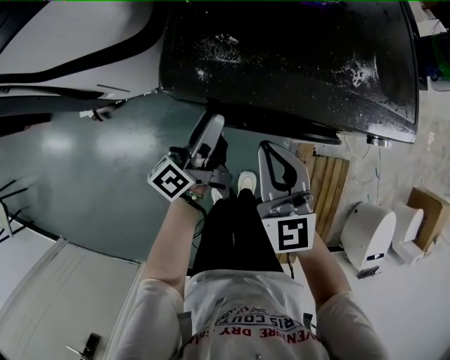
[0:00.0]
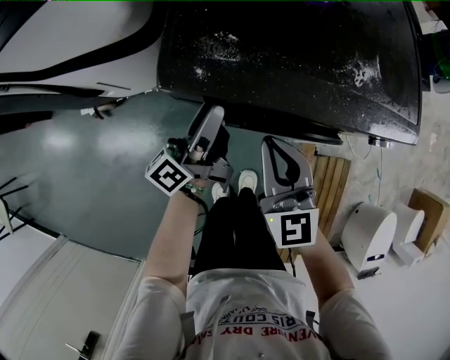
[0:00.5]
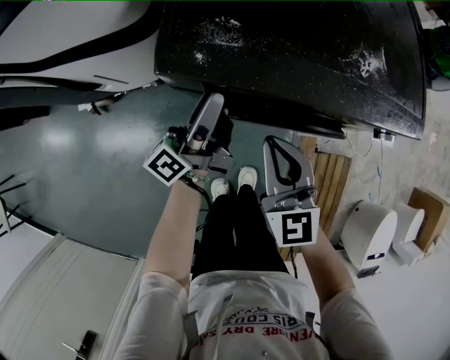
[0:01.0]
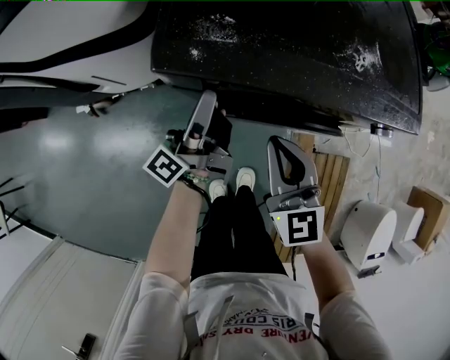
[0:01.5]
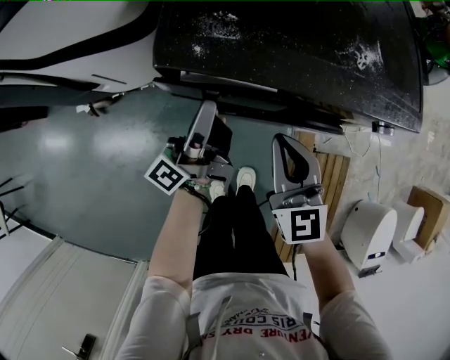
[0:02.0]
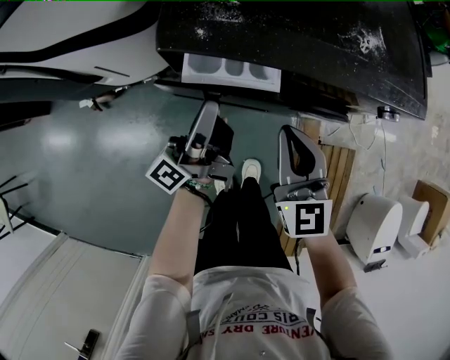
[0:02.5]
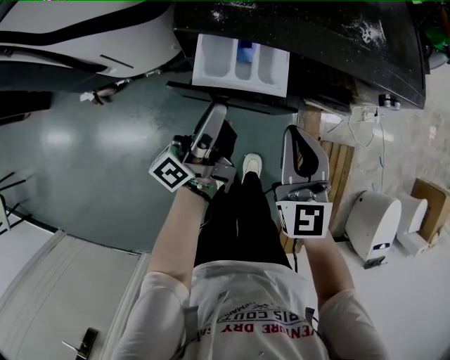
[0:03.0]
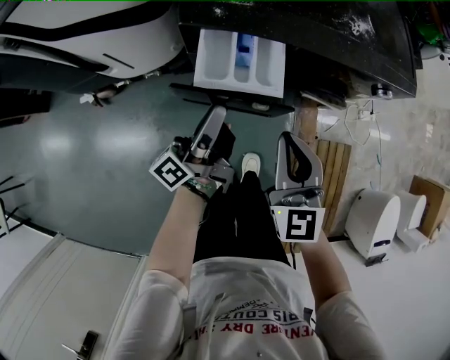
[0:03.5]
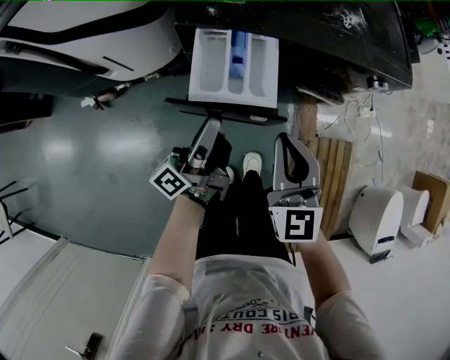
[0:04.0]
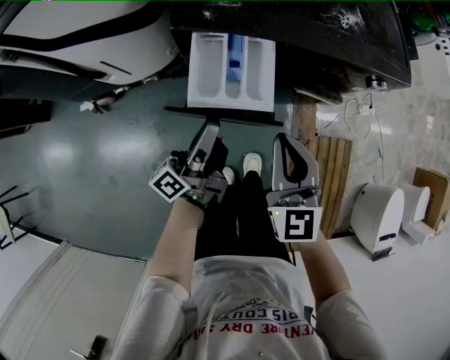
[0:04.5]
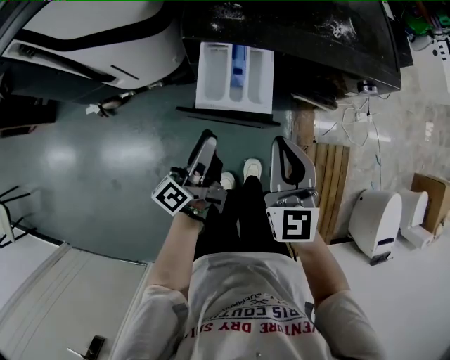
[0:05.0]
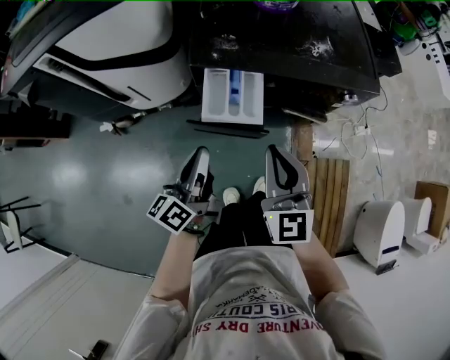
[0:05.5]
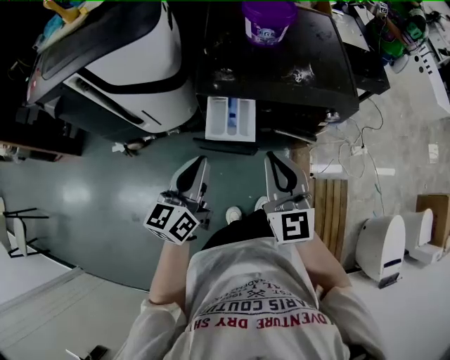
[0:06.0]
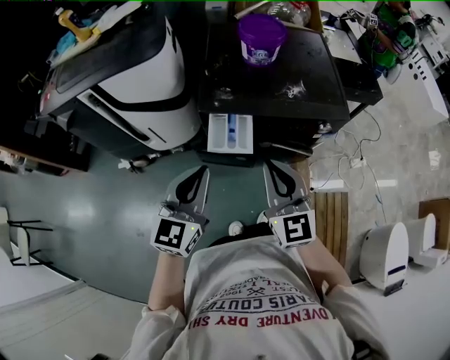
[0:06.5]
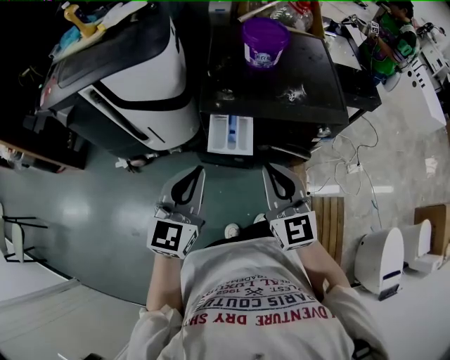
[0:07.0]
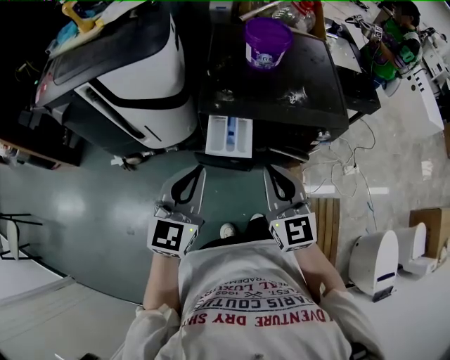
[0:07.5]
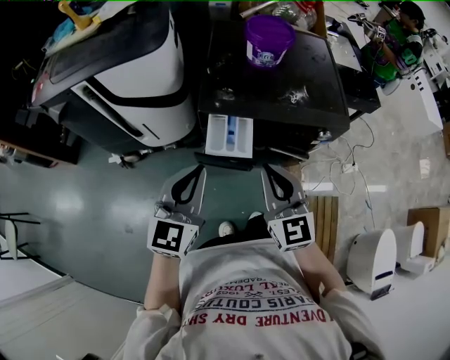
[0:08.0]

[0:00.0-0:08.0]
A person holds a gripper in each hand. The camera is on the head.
0:00.0 to 0:02.0: The left gripper closes up.
0:02.0 to 0:04.0: Both grippers move backward, some 10 cm.
0:04.0 to 0:06.0: The grippers both shift upward by about 20 cm. The left gripper rolls clockwise, seen from behind, by about 50 degrees, and opens and closes again.
0:06.0 to 0:08.0: The left gripper goes about 5 cm upward, and turns by approximately 30 degrees.

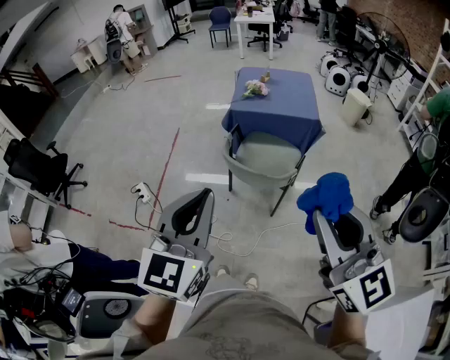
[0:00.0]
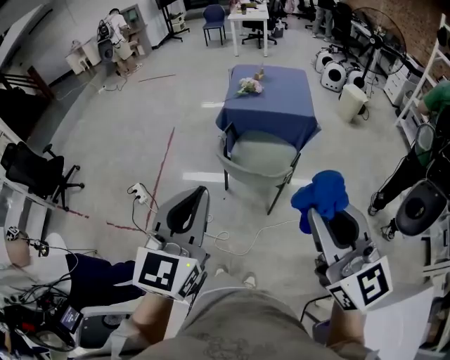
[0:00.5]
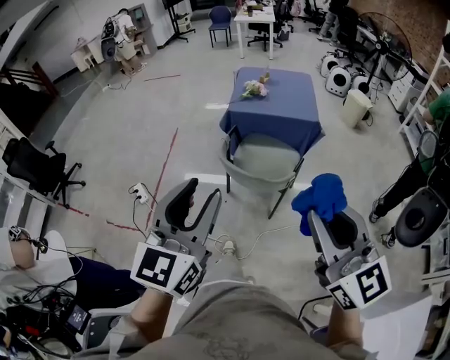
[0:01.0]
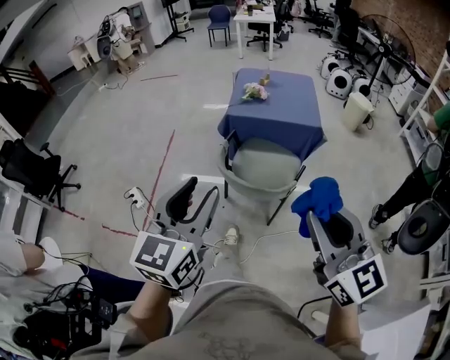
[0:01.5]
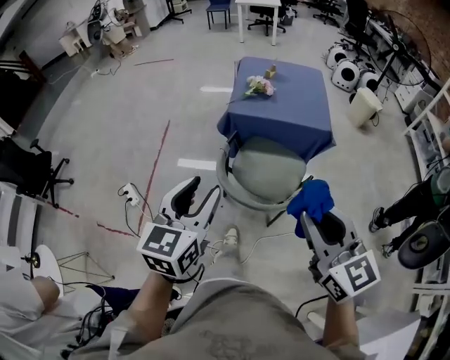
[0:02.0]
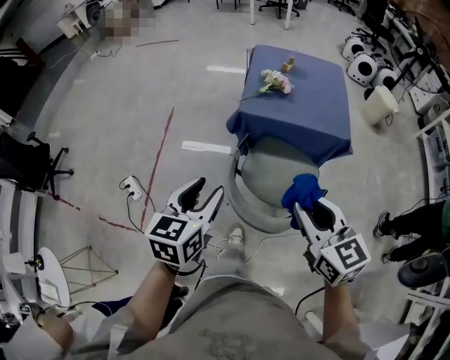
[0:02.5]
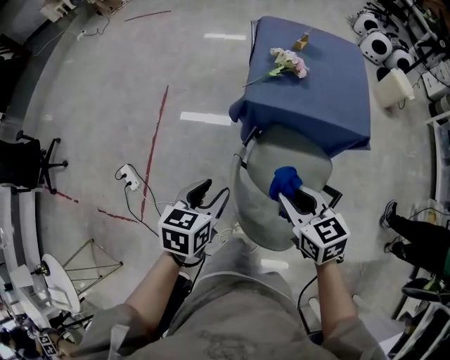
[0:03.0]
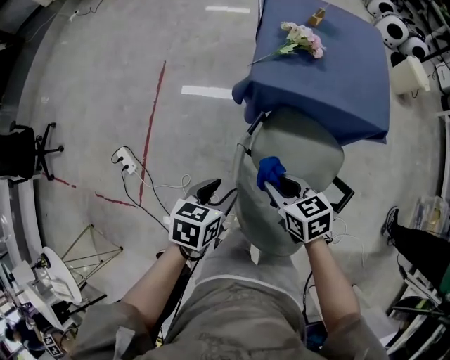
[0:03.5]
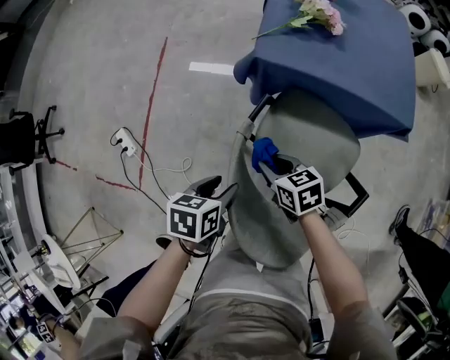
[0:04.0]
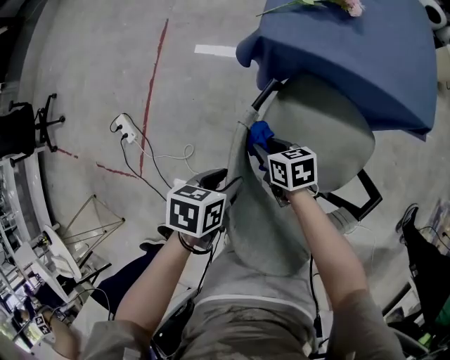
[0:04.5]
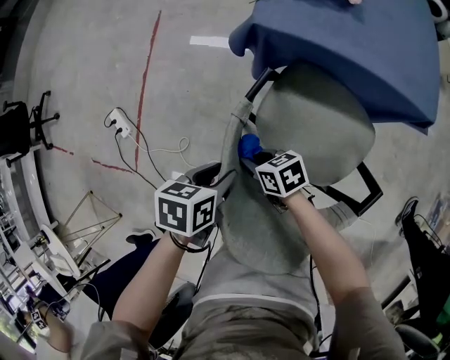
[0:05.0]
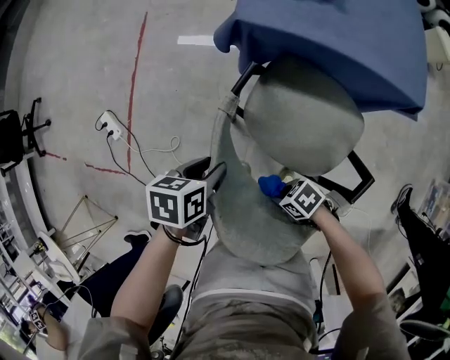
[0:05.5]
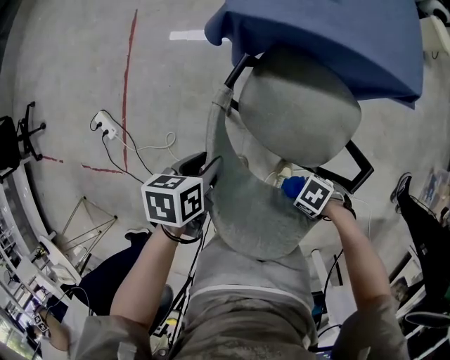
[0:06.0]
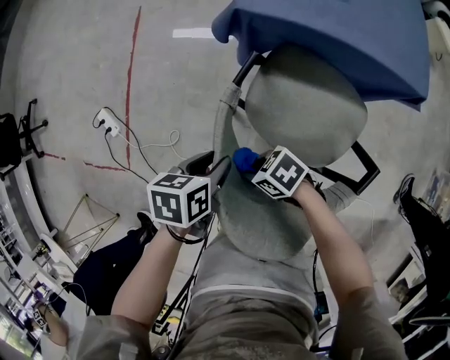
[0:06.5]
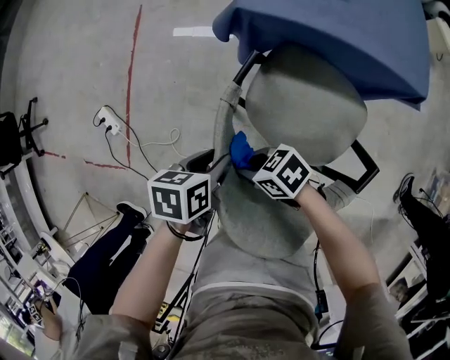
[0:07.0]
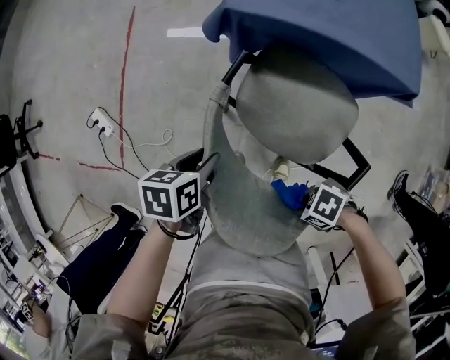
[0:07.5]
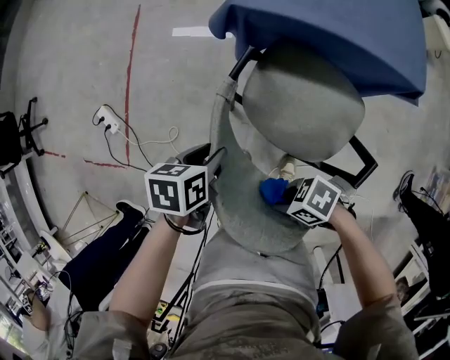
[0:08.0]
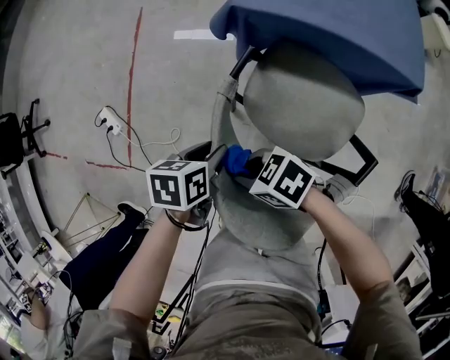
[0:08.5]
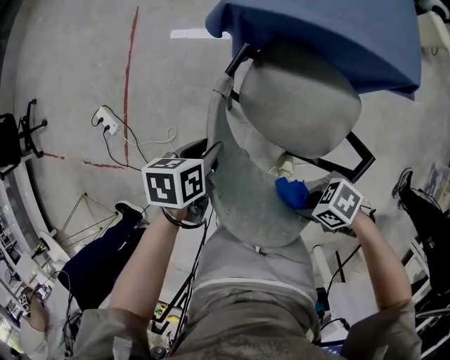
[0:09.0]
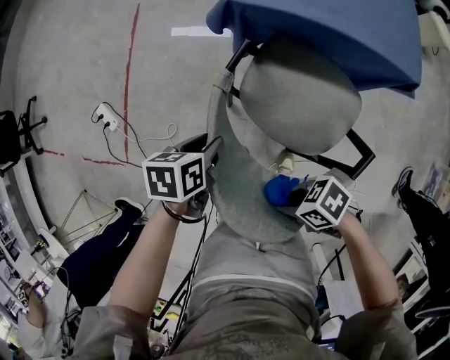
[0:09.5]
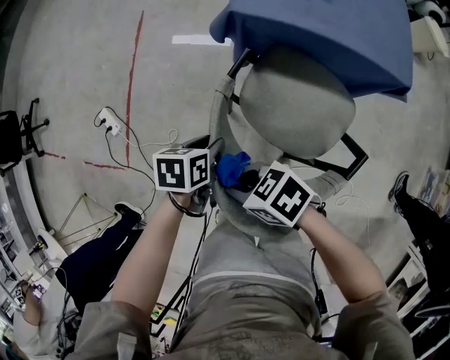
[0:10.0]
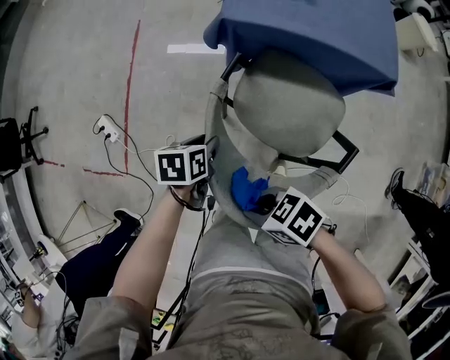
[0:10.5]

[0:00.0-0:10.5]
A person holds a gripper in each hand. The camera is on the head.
0:00.0 to 0:02.0: Both grippers move forward and downward, some 25 cm. The left gripper opens.
0:02.0 to 0:04.0: The two grippers go roughly 50 cm downward and forward. The left gripper tilts its fingers about 40 degrees downward. Meanwhile the right gripper angles its fingers downward, by about 30 degrees.
0:04.0 to 0:06.5: The right gripper rotates roughly 40 degrees.
0:06.5 to 0:08.5: The right gripper travels upward by roughly 10 cm.

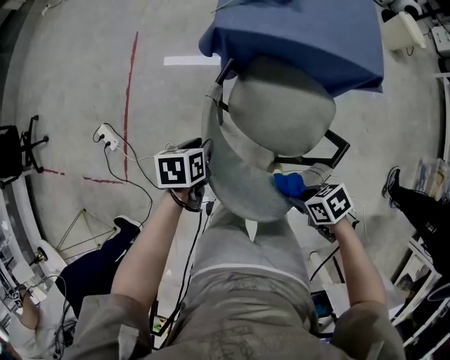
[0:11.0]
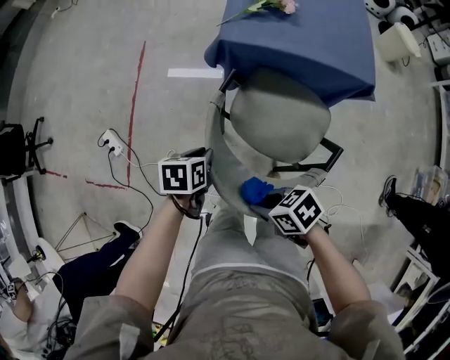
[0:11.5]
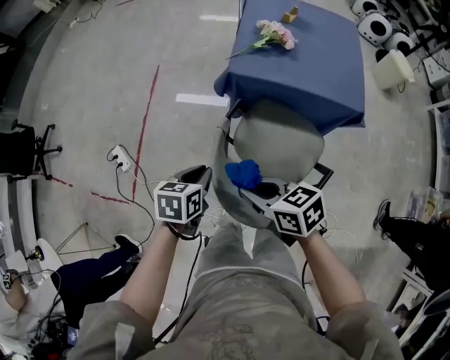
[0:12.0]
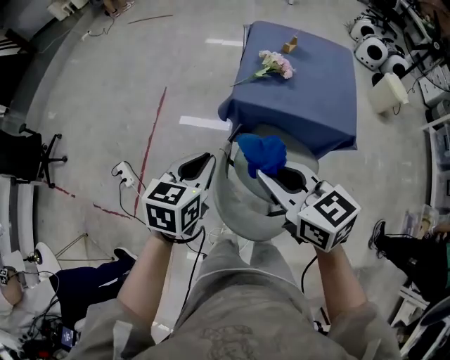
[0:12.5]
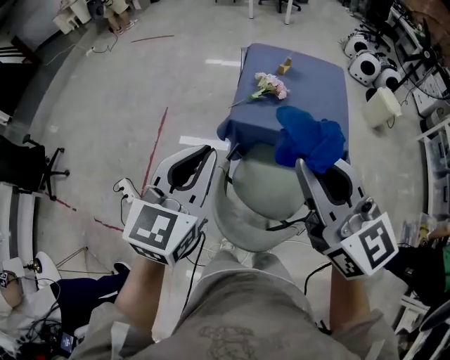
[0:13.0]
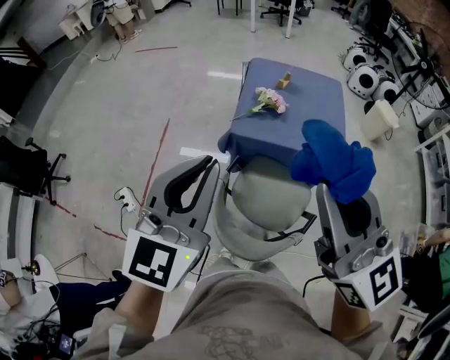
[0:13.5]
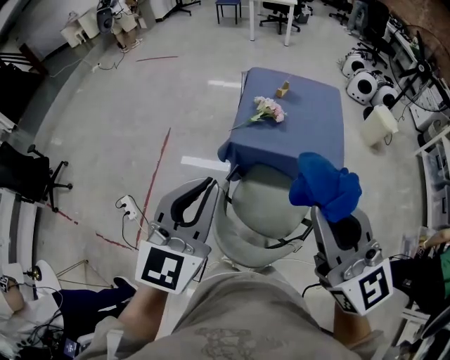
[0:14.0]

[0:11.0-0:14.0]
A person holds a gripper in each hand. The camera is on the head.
0:11.0 to 0:12.5: The two grippers go roughly 30 cm upward. The left gripper rotates approximately 30 degrees, while the right gripper points its fingers approximately 40 degrees further upward.
0:12.5 to 0:14.0: The left gripper goes approximately 20 cm upward, and rotates roughly 30 degrees. Meanwhile the right gripper heads upward and to the right, covering some 20 cm, and turns by approximately 30 degrees.

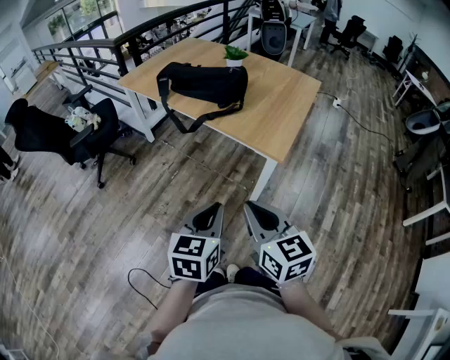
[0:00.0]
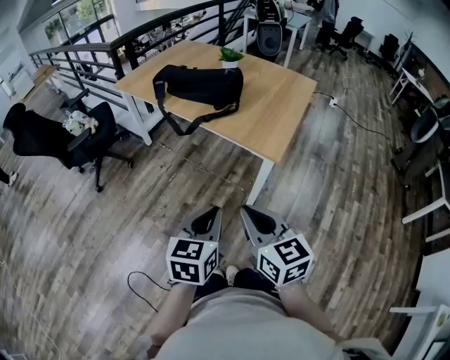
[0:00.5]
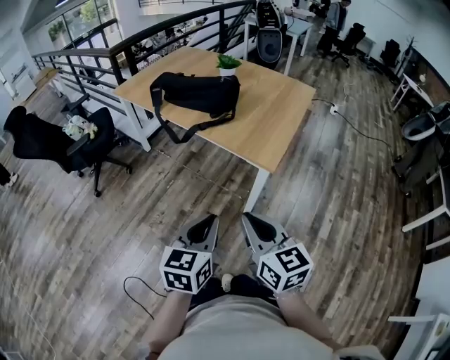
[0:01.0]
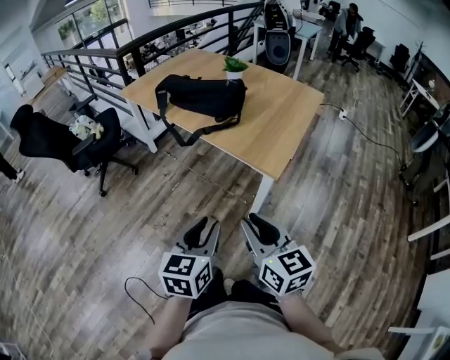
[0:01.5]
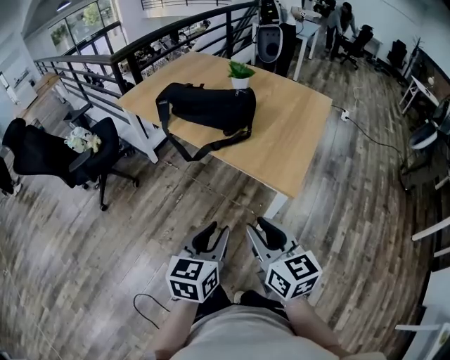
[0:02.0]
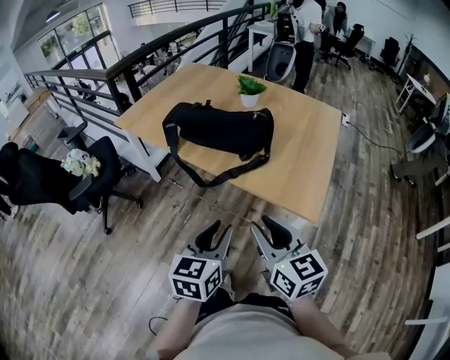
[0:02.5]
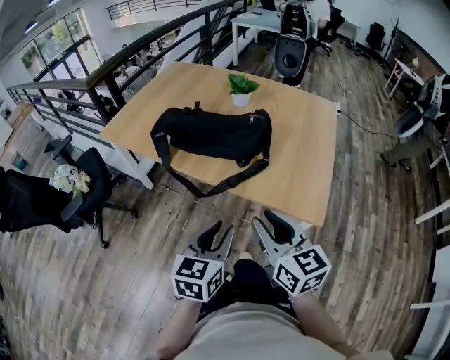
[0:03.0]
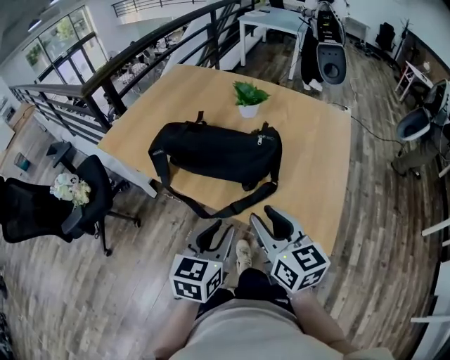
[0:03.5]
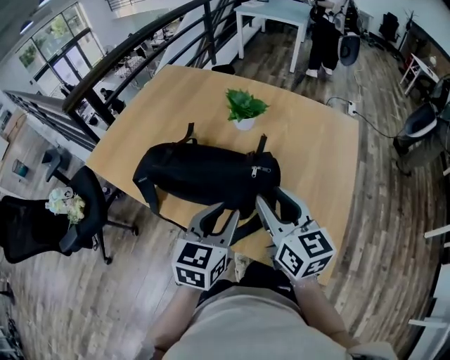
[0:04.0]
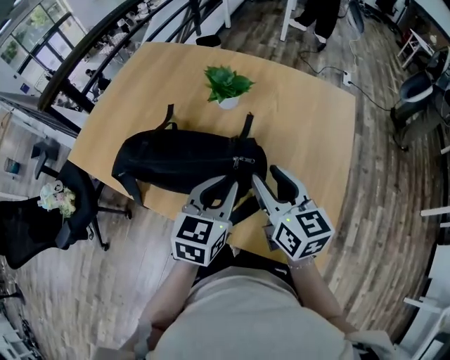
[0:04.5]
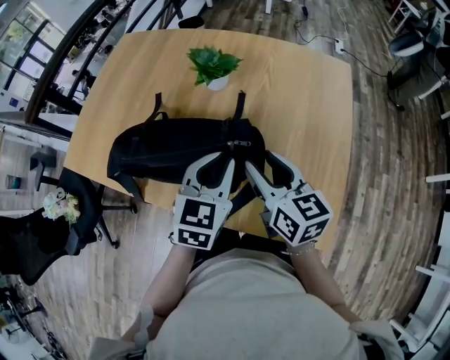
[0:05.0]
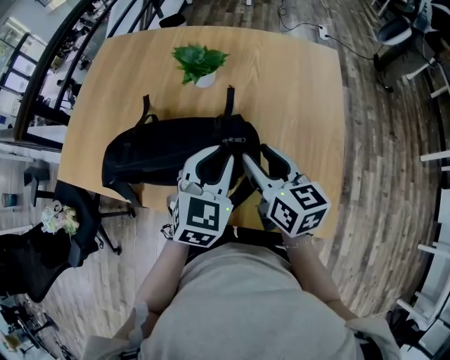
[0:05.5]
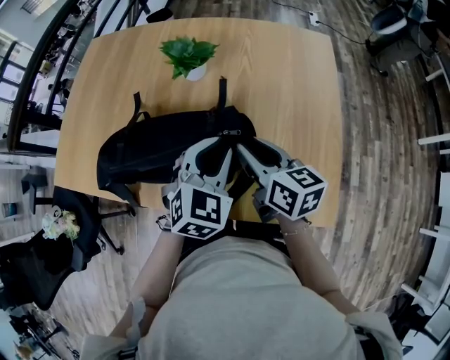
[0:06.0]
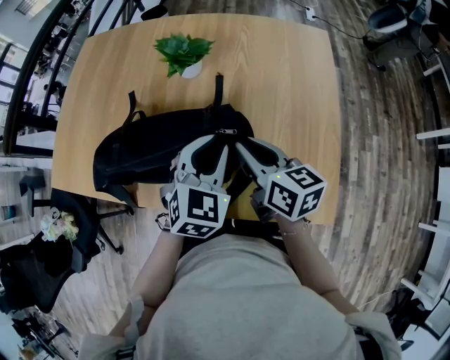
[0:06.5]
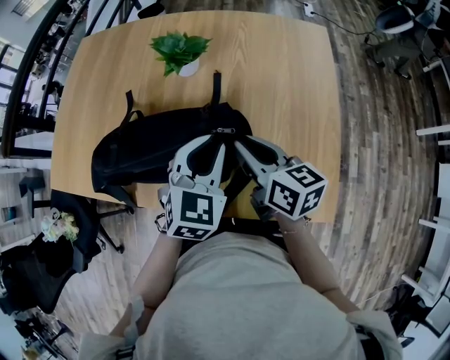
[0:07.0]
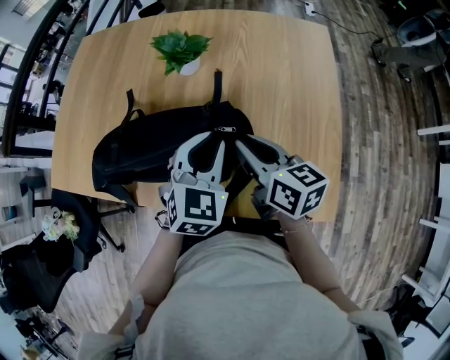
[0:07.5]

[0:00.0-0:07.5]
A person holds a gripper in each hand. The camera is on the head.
0:00.0 to 0:02.0: Both grippers move forward, about 10 cm. The right gripper opens its fingers; the left gripper opens up.
0:02.0 to 0:04.0: The two grippers travel together, forward, roughly 40 cm.
0:04.0 to 0:05.5: The right gripper travels downward and forward by some 10 cm; the left gripper moves forward and to the right, some 10 cm, and changes its angle by roughly 30 degrees.
0:05.5 to 0:07.5: The right gripper closes up.
